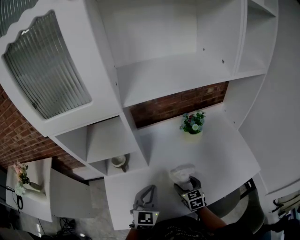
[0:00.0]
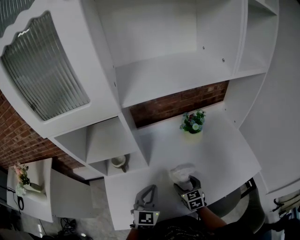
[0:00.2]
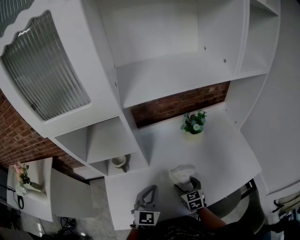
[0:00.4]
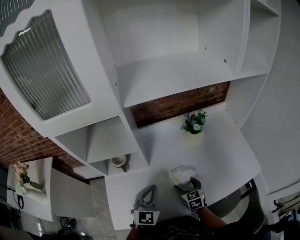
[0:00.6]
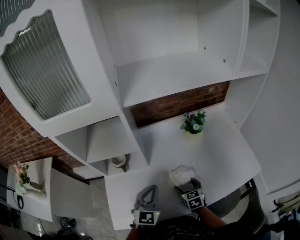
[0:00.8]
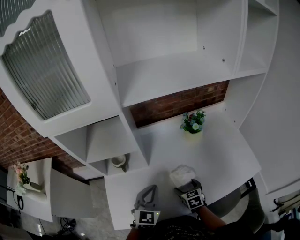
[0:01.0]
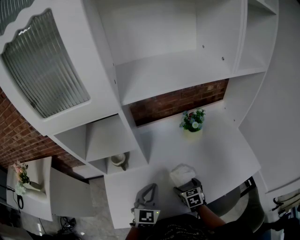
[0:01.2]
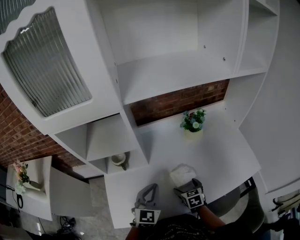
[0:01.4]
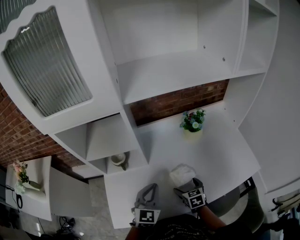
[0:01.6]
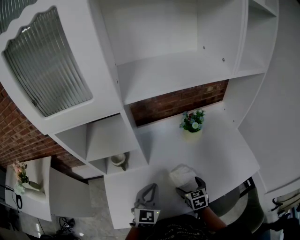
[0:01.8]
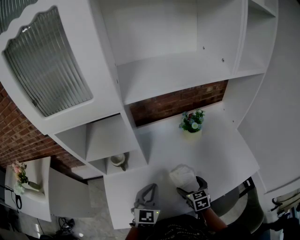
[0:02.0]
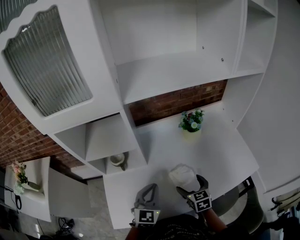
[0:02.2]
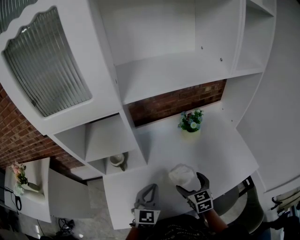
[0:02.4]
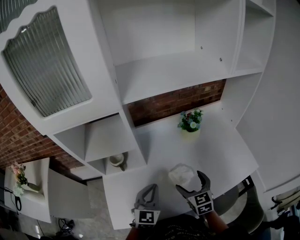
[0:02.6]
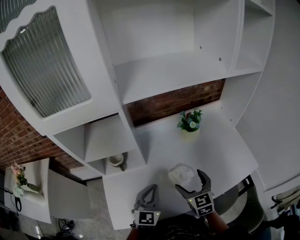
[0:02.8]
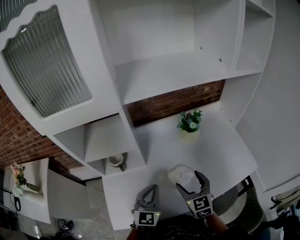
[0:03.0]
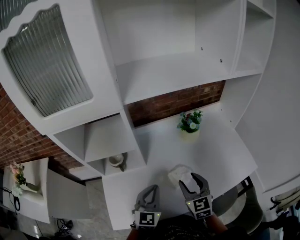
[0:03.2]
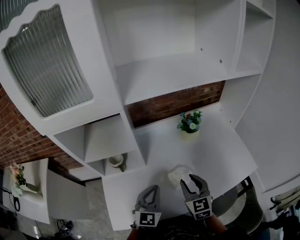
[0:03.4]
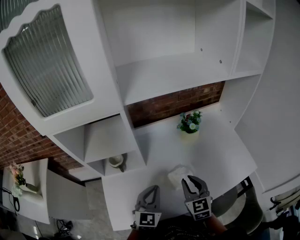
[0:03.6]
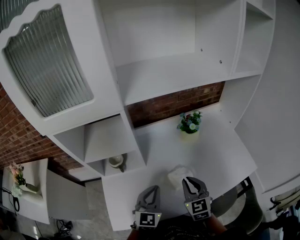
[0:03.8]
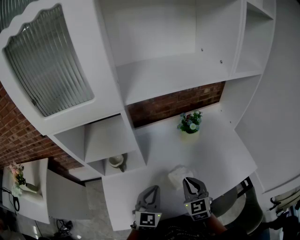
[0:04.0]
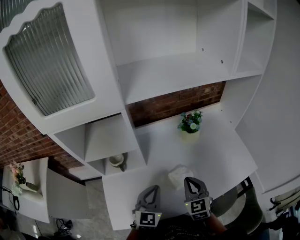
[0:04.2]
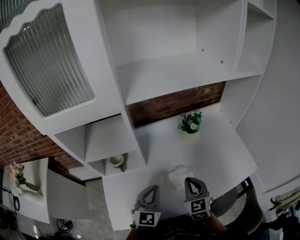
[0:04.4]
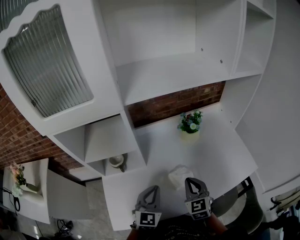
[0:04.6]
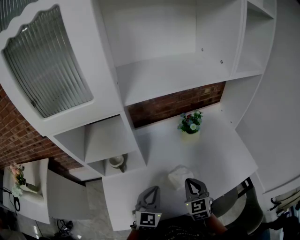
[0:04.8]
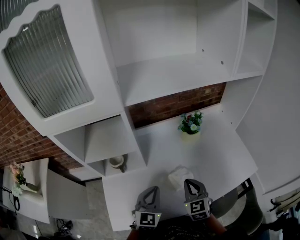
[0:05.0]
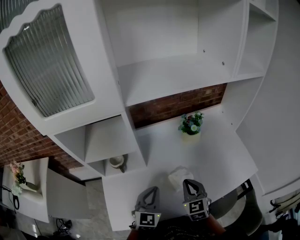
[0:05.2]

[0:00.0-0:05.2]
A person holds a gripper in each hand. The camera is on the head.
0:00.0 to 0:01.8: The grippers make only small movements.
0:01.8 to 0:03.4: The right gripper travels upward by about 15 cm, turns by approximately 20 degrees, and closes.
0:03.4 to 0:05.2: The grippers stay close to where they were, moving slightly.

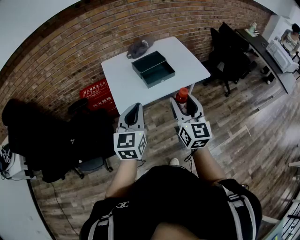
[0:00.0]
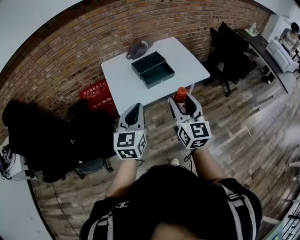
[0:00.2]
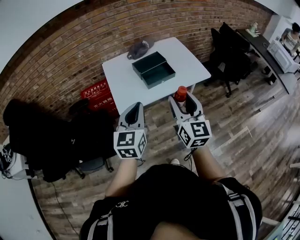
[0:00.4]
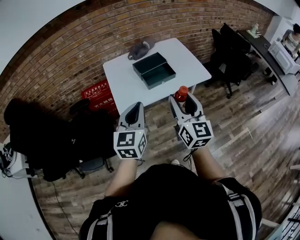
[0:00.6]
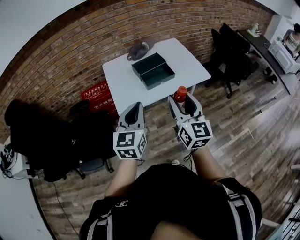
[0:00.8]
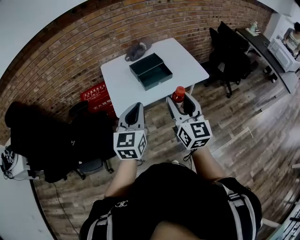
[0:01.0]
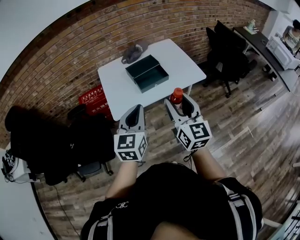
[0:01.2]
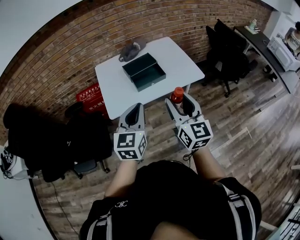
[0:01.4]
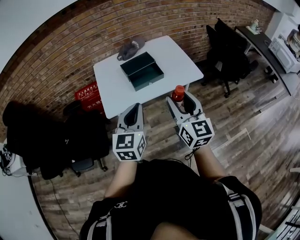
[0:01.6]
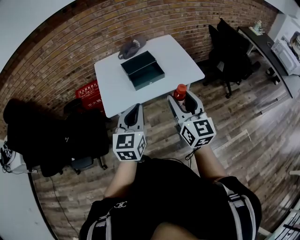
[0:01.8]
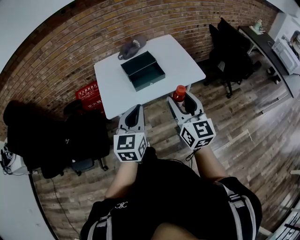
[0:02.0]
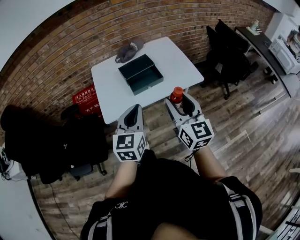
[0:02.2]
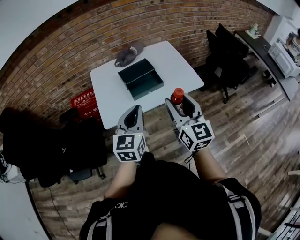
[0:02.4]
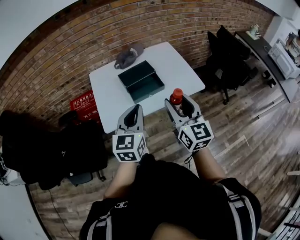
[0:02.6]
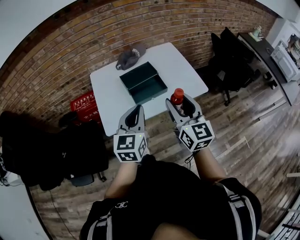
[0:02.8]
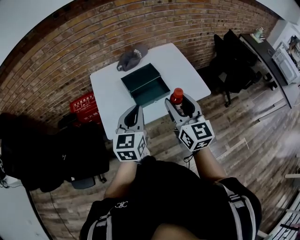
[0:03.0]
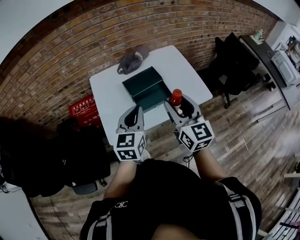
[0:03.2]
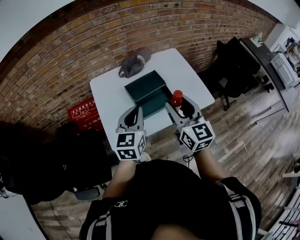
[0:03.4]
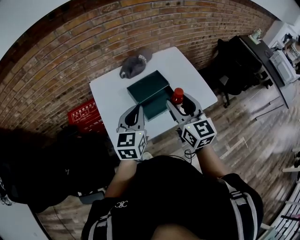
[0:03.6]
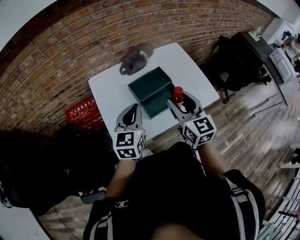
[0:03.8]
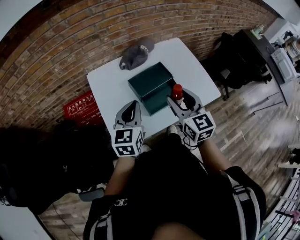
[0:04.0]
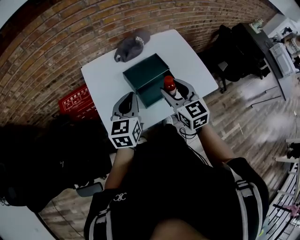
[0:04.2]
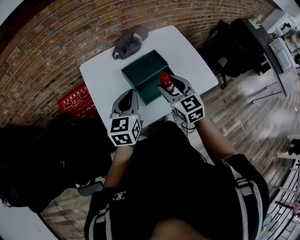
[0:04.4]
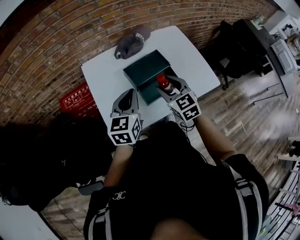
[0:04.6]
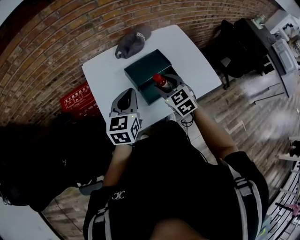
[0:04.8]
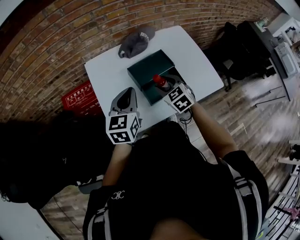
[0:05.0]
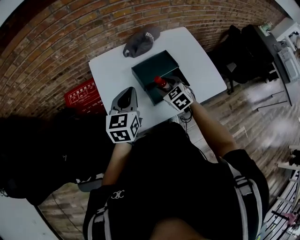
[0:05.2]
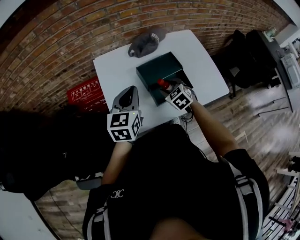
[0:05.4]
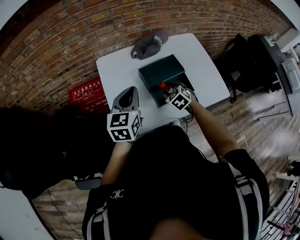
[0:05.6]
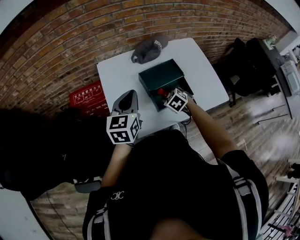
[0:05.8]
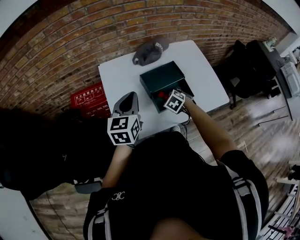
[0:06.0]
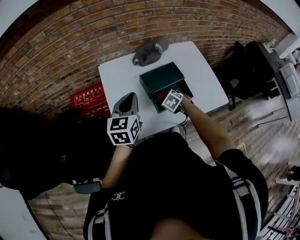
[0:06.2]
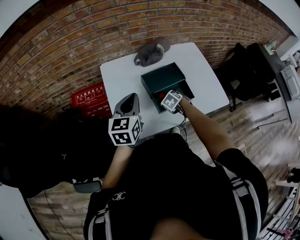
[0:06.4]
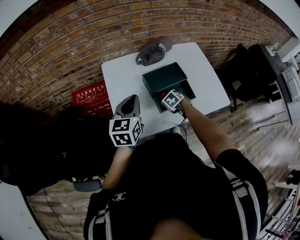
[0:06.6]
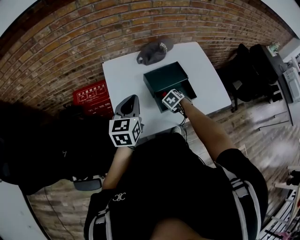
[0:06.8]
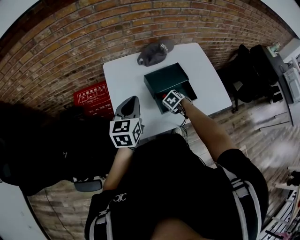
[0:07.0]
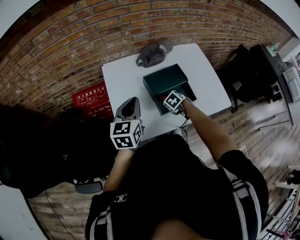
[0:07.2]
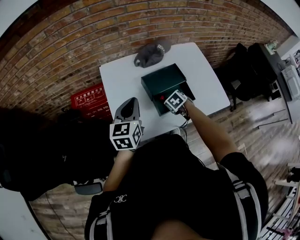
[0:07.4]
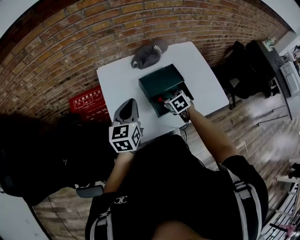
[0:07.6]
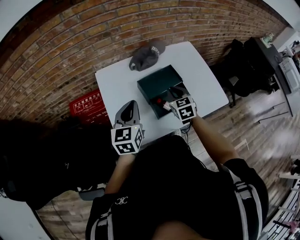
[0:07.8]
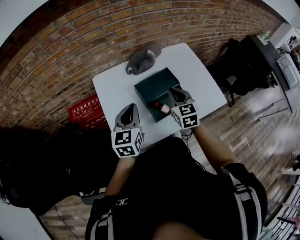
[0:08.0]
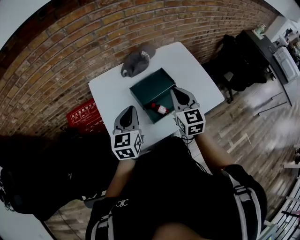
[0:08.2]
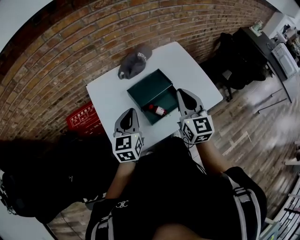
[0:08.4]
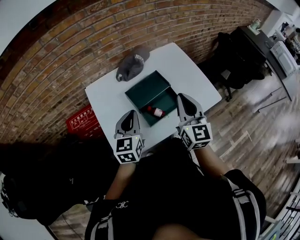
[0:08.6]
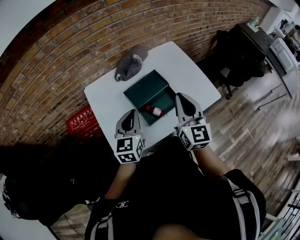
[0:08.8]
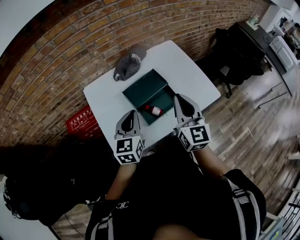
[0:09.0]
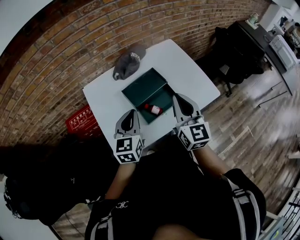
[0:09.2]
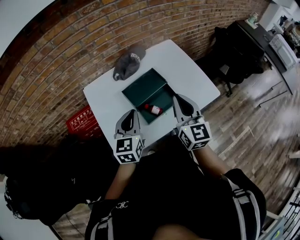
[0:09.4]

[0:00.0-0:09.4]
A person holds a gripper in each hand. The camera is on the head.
0:00.0 to 0:01.6: The two grippers go some 10 cm to the right.
0:01.6 to 0:03.2: The grippers both shift forward by some 20 cm.
0:03.2 to 0:04.8: The left gripper moves forward, to the left and downward, some 15 cm. The right gripper is displaced downward, forward and to the left by roughly 25 cm, and rotates about 40 degrees.
0:04.8 to 0:06.2: The right gripper is displaced downward by some 15 cm, and angles its fingers downward, by about 40 degrees; the left gripper moves to the left, approximately 5 cm.
0:06.2 to 0:07.8: The right gripper is displaced upward by roughly 15 cm, tilts its fingers approximately 40 degrees upward, and closes up.
0:07.8 to 0:09.4: The left gripper shifts some 10 cm to the right, while the right gripper travels upward, backward and to the right by roughly 20 cm, and rotates some 30 degrees.

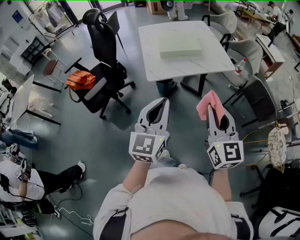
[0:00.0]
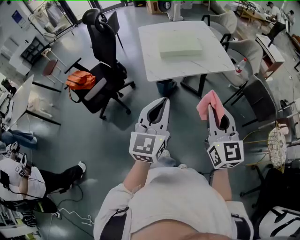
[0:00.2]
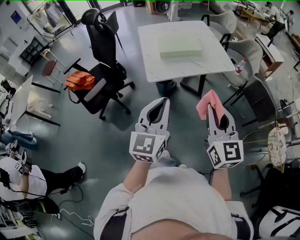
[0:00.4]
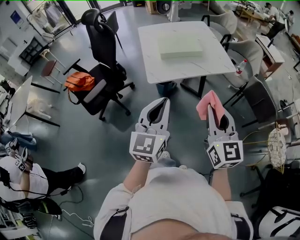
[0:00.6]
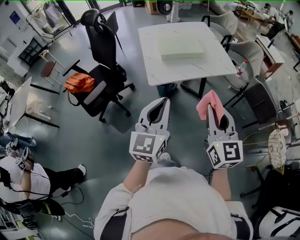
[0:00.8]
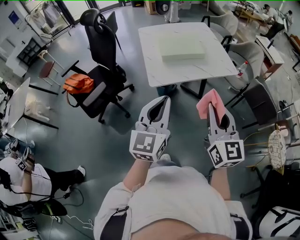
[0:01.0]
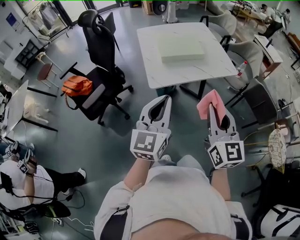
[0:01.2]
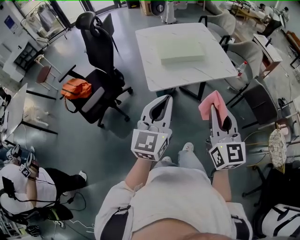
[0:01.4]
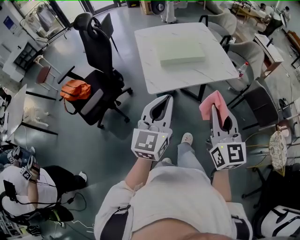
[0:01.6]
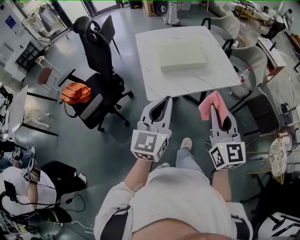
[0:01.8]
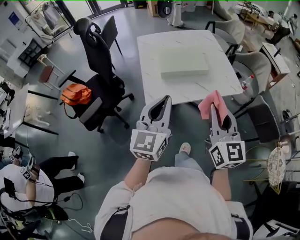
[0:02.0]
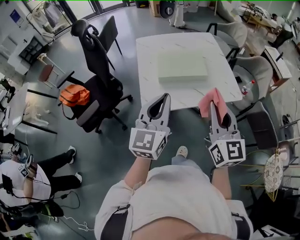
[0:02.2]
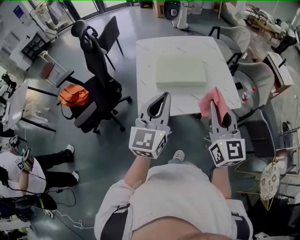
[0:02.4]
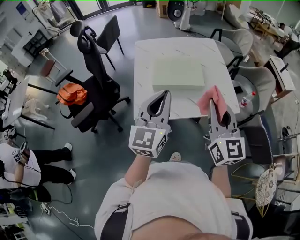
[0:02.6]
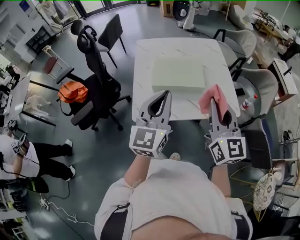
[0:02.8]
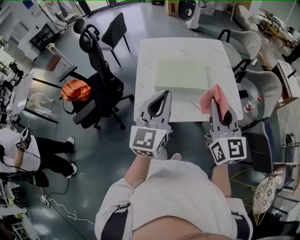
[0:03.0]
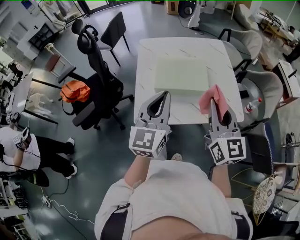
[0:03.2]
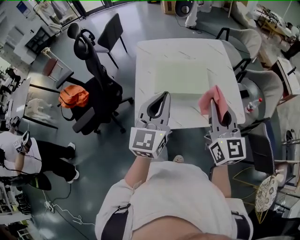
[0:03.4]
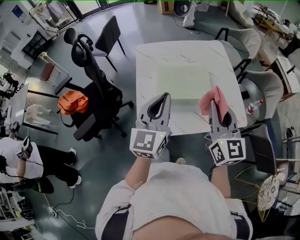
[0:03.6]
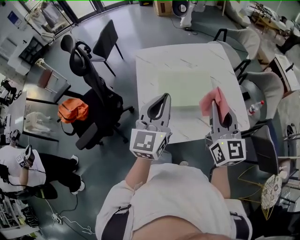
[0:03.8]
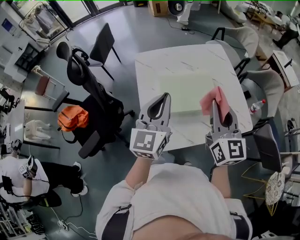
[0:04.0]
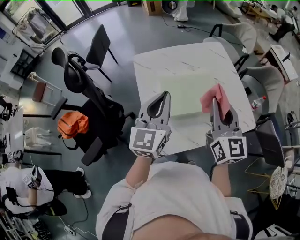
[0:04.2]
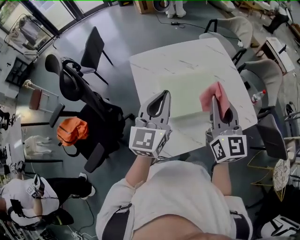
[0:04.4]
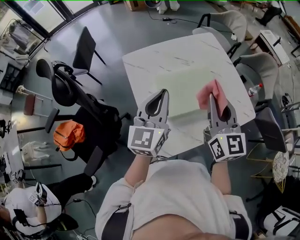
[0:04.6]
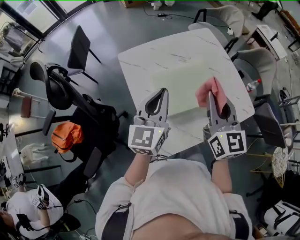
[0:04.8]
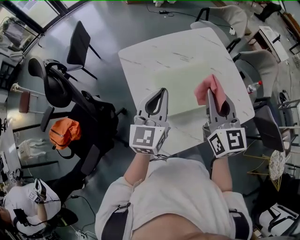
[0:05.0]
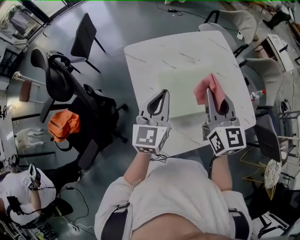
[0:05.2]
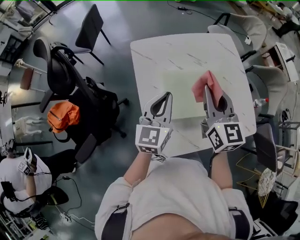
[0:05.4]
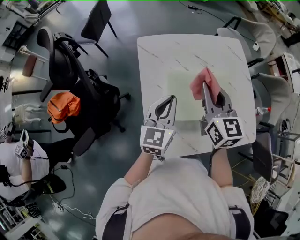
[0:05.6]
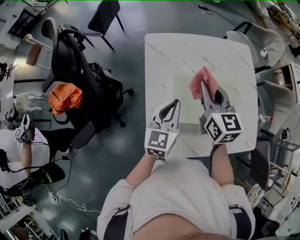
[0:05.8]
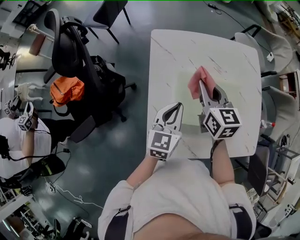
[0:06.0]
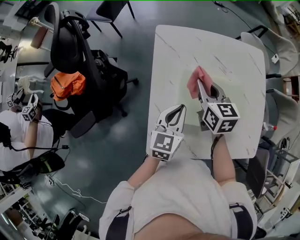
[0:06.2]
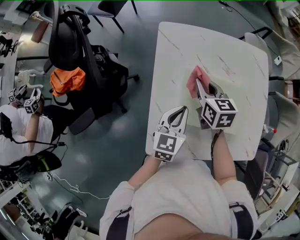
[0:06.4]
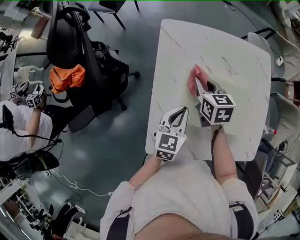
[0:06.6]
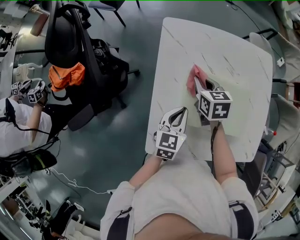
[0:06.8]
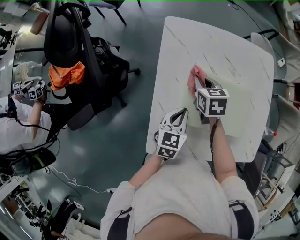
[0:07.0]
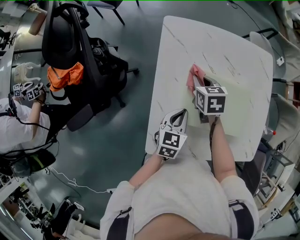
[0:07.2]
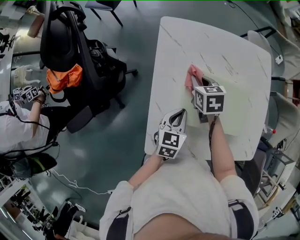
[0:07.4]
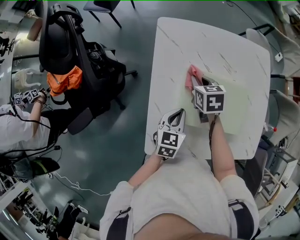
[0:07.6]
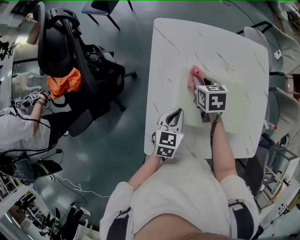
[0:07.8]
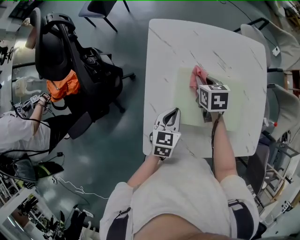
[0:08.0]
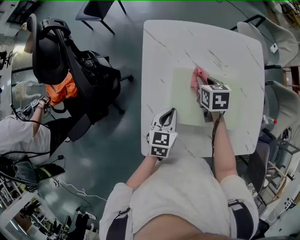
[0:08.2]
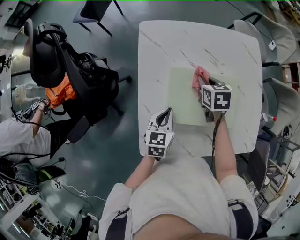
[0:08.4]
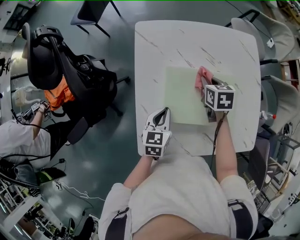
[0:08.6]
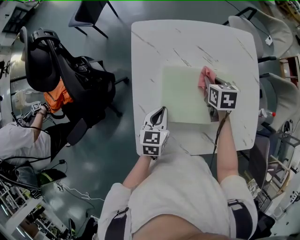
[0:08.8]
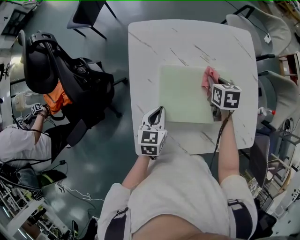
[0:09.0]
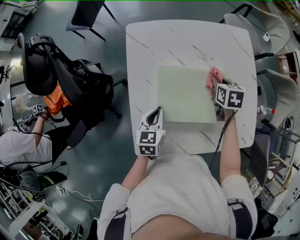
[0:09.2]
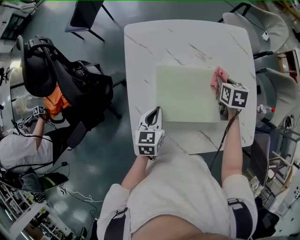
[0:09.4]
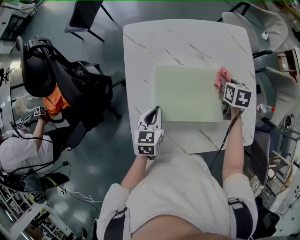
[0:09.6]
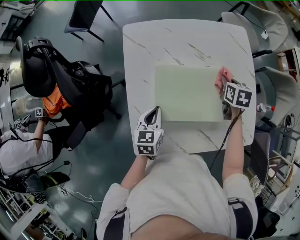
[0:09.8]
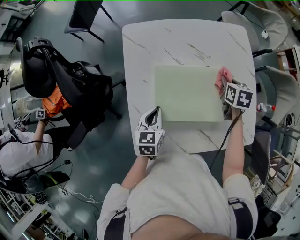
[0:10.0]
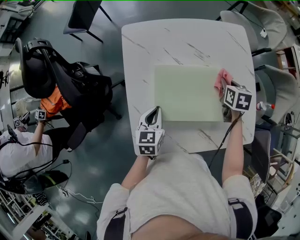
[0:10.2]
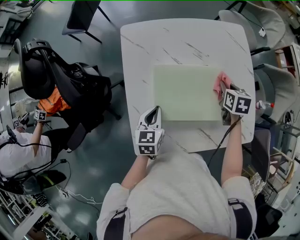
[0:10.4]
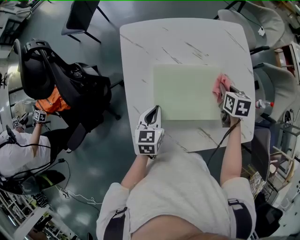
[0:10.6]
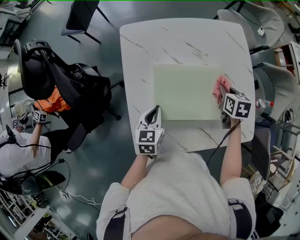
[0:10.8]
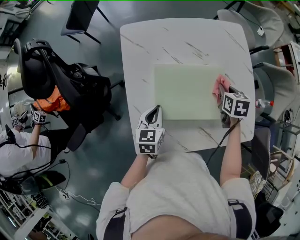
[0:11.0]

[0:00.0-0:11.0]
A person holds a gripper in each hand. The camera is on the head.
0:00.0 to 0:01.6: The two grippers go roughly 10 cm forward.
0:01.6 to 0:03.2: The two grippers go some 25 cm forward.
0:03.2 to 0:04.8: The two grippers go approximately 20 cm forward and to the left.
0:04.8 to 0:06.2: The left gripper heads downward, covering some 15 cm, and turns by some 30 degrees. The right gripper shifts about 25 cm forward, downward and to the left, and rotates about 40 degrees.
0:06.2 to 0:07.8: Both grippers move downward, roughly 10 cm. The right gripper changes its angle by about 20 degrees.
0:07.8 to 0:09.4: The right gripper heads to the right, covering roughly 25 cm.
0:09.4 to 0:11.0: The right gripper shifts roughly 5 cm backward.
